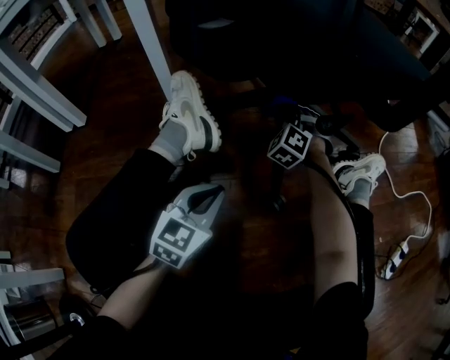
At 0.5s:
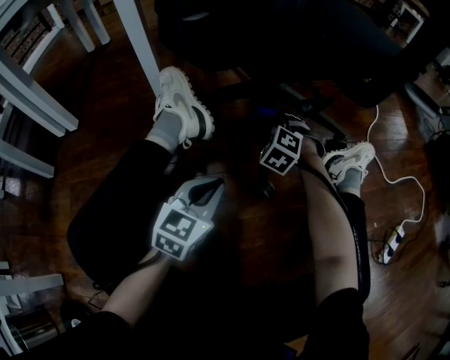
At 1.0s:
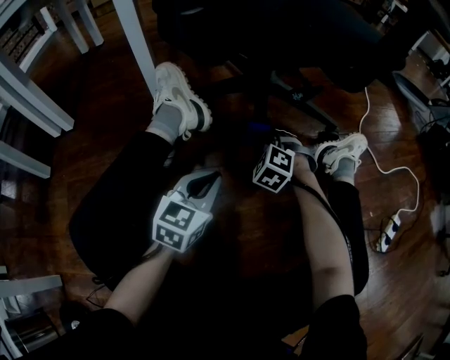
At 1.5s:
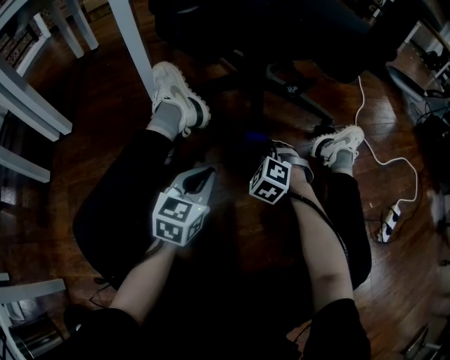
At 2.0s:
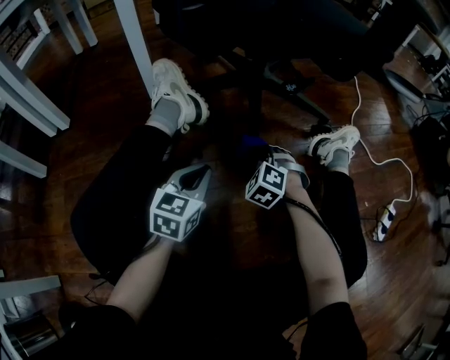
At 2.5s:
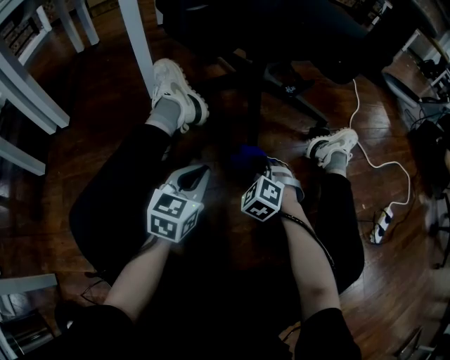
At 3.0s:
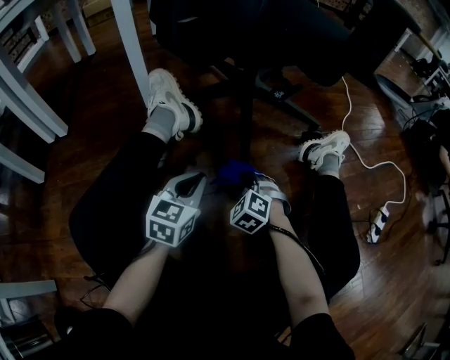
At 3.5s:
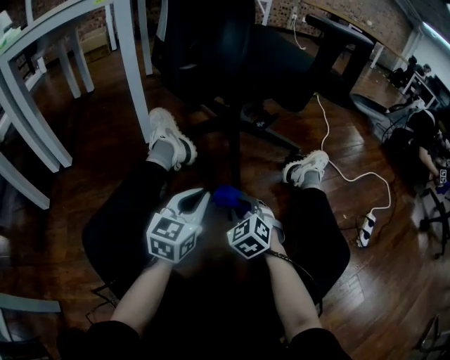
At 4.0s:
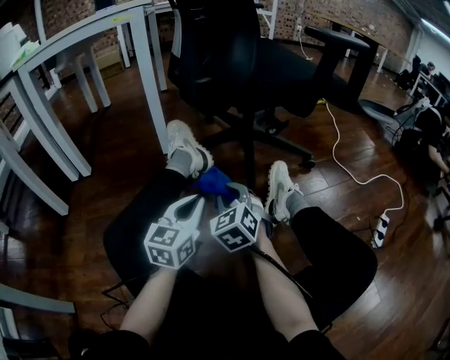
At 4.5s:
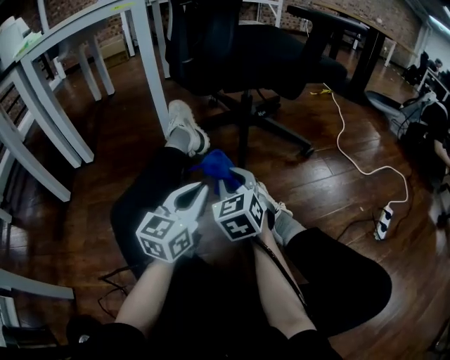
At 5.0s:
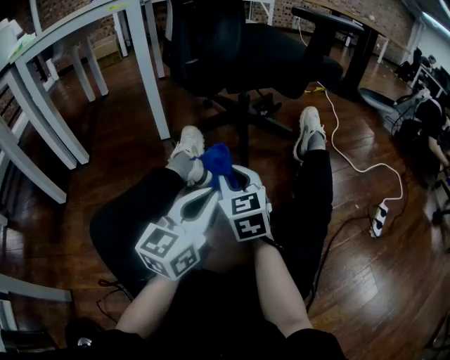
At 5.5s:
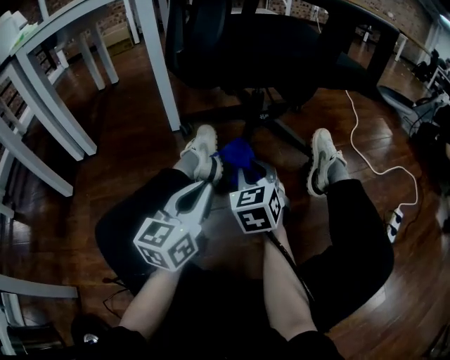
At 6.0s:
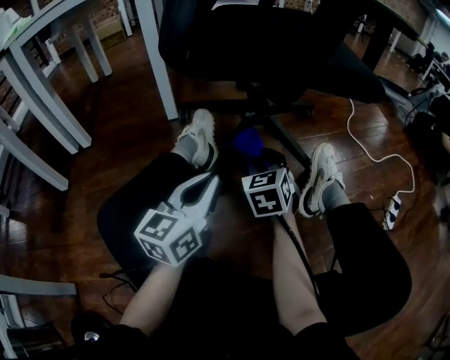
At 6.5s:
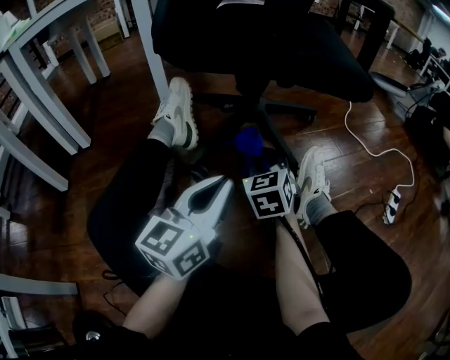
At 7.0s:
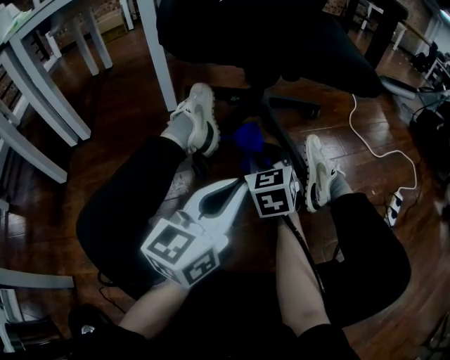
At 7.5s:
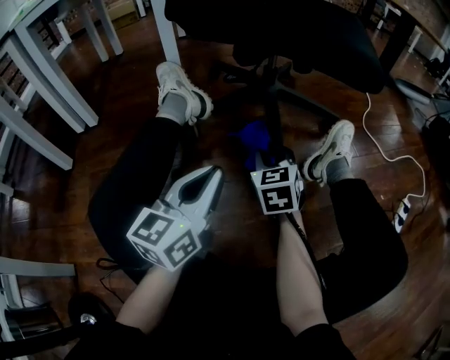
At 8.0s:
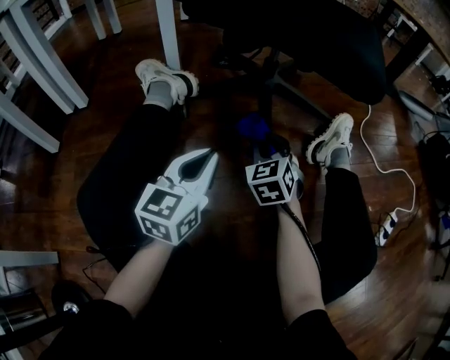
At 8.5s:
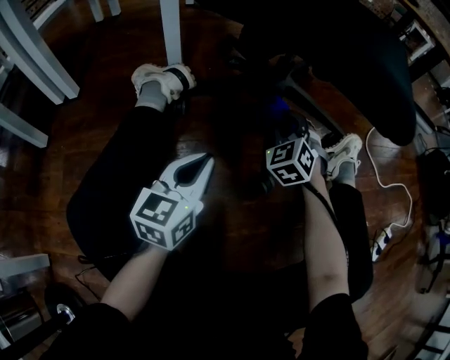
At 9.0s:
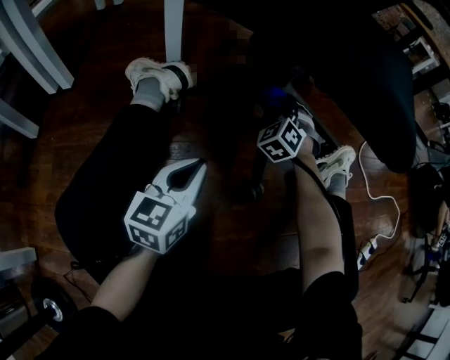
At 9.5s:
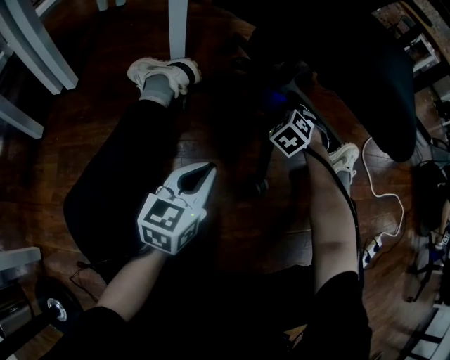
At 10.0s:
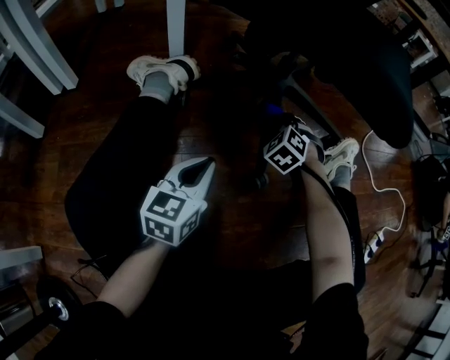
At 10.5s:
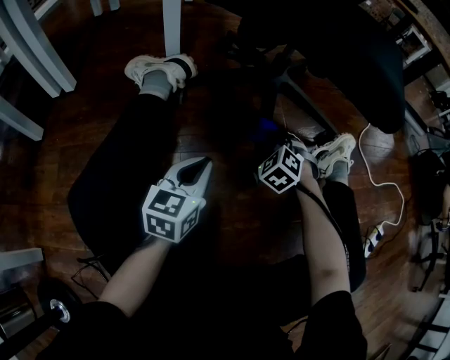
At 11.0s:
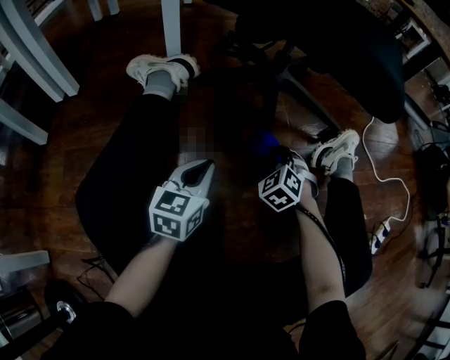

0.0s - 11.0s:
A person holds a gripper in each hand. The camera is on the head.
0.0s - 2.0s: The right gripper is displaced backward by roughly 20 cm.
2.0s - 3.5s: The left gripper shifts about 10 cm upward, while the right gripper heads backward and upward, covering roughly 10 cm, and turns by about 30 degrees.
3.5s - 5.5s: The left gripper is displaced to the left and upward by some 10 cm. The right gripper shifts approximately 10 cm upward and to the left, and changes its angle by approximately 20 degrees.
5.5s - 7.5s: The right gripper shifts by some 5 cm, while the left gripper reaches some 10 cm to the right, then returns.
7.5s - 9.0s: The left gripper goes some 15 cm forward and downward; the right gripper goes about 25 cm forward, and rotates around the line of its fingers by roughly 50 degrees, counterclockwise from behind.
9.0s - 11.0s: The right gripper is displaced backward and downward by about 20 cm, while the left gripper moves about 5 cm.

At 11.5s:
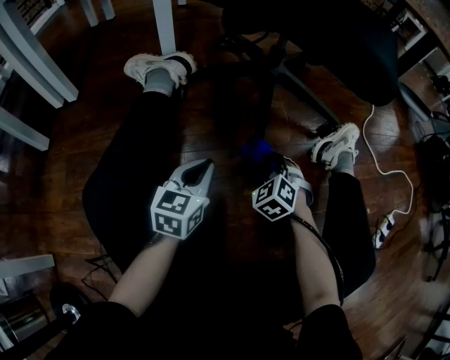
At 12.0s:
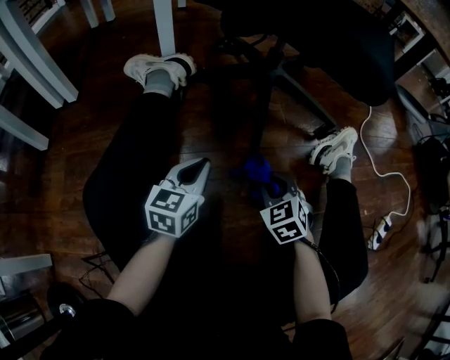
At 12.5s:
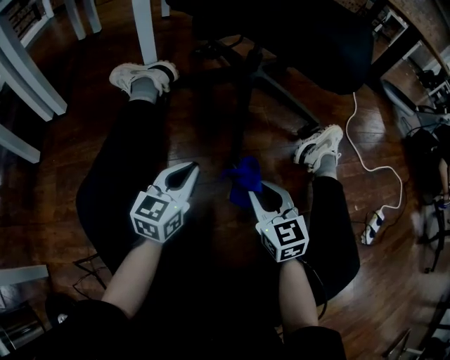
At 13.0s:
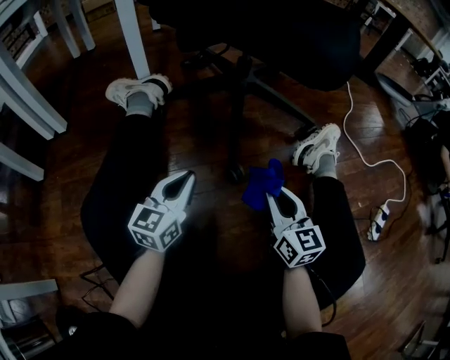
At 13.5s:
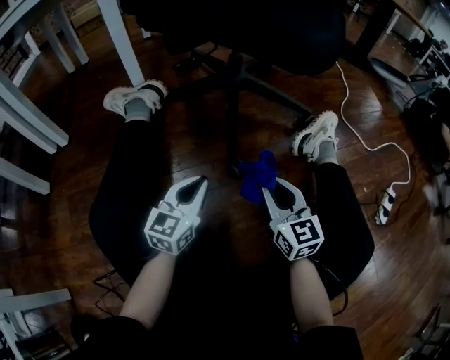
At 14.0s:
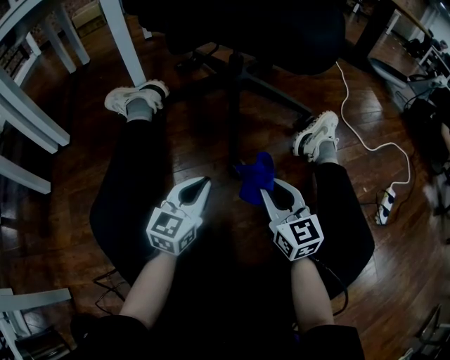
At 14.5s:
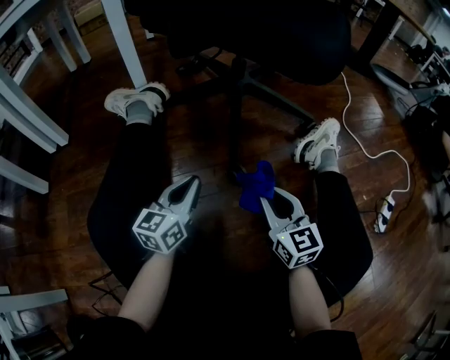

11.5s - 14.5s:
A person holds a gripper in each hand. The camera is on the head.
11.5s - 13.0s: The right gripper heads upward, backward and to the right, covering approximately 15 cm, and twists about 60 degrees clockwise, seen from behind.
13.0s - 14.5s: The grippers make only small movements.

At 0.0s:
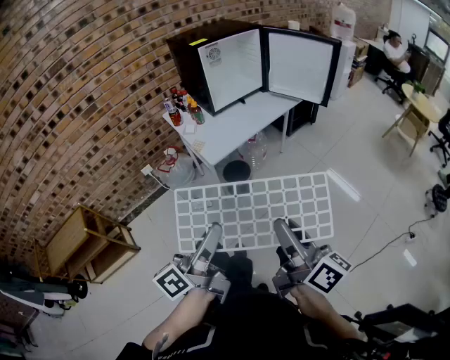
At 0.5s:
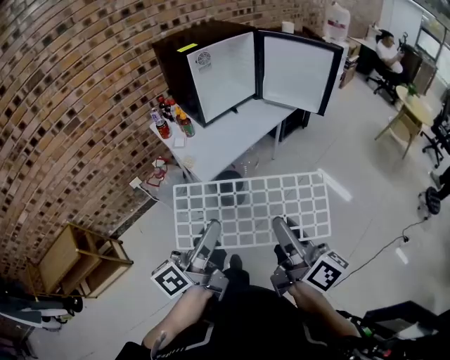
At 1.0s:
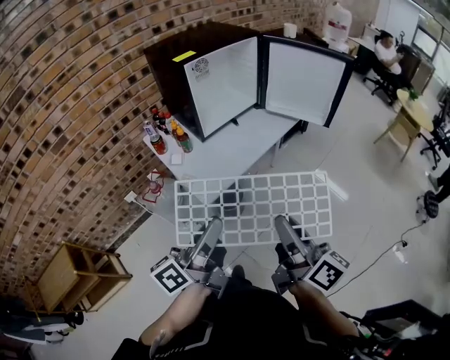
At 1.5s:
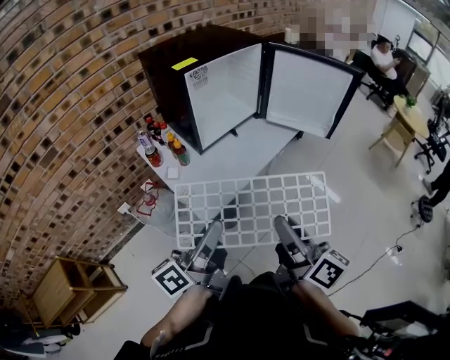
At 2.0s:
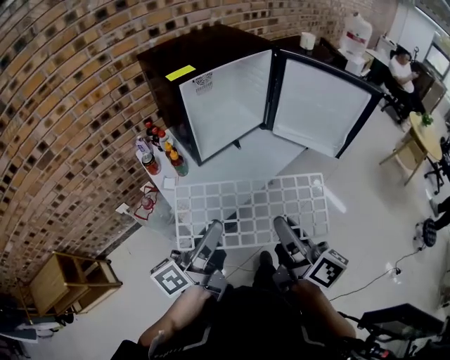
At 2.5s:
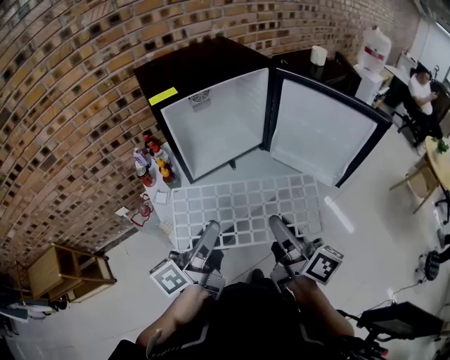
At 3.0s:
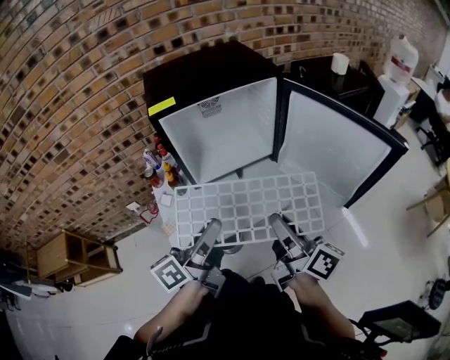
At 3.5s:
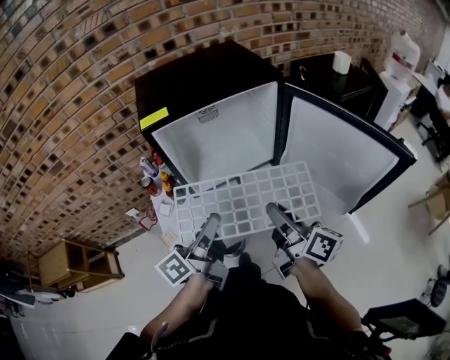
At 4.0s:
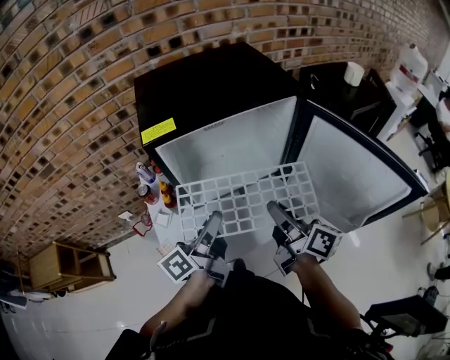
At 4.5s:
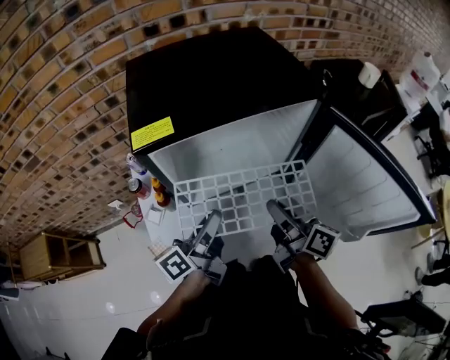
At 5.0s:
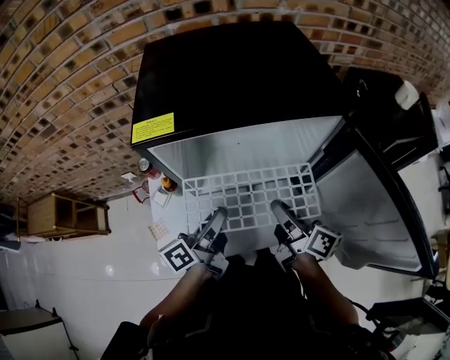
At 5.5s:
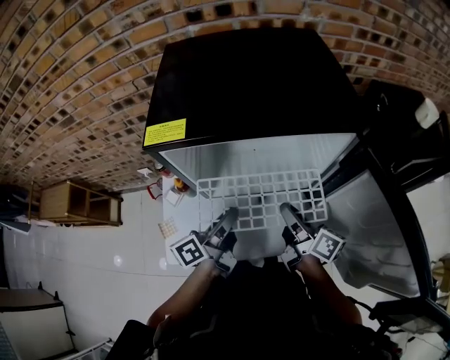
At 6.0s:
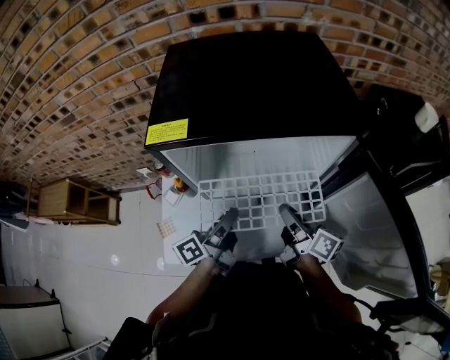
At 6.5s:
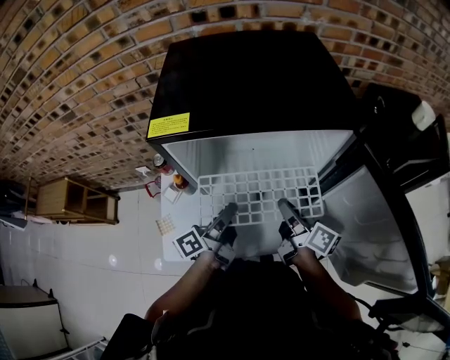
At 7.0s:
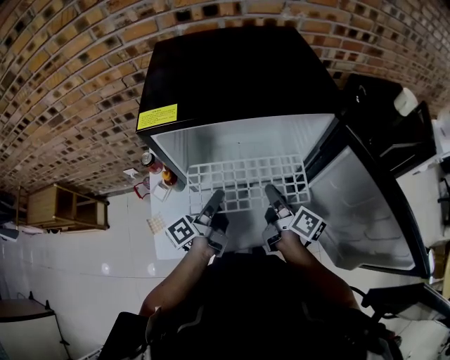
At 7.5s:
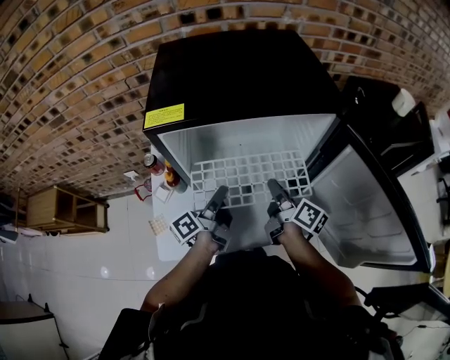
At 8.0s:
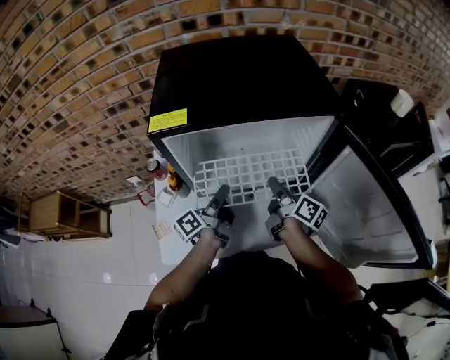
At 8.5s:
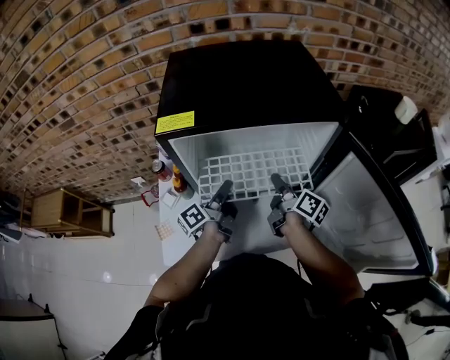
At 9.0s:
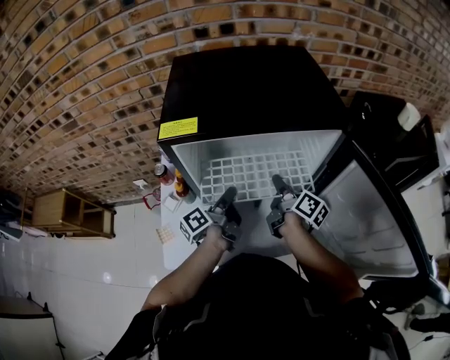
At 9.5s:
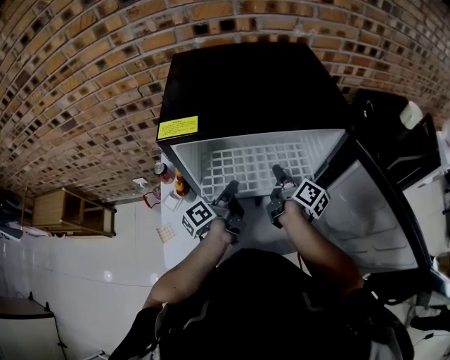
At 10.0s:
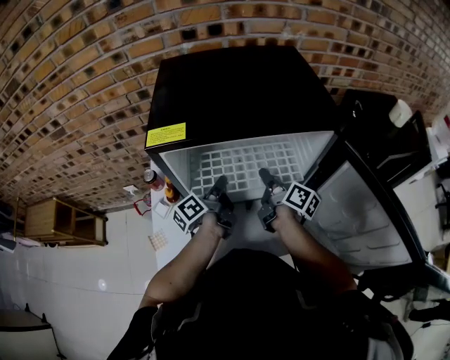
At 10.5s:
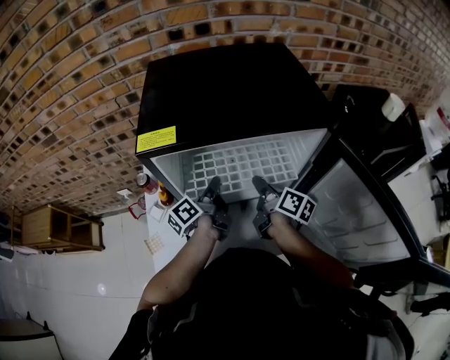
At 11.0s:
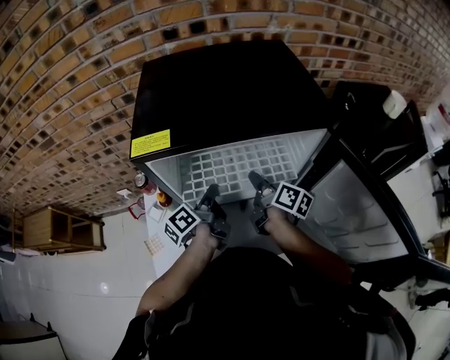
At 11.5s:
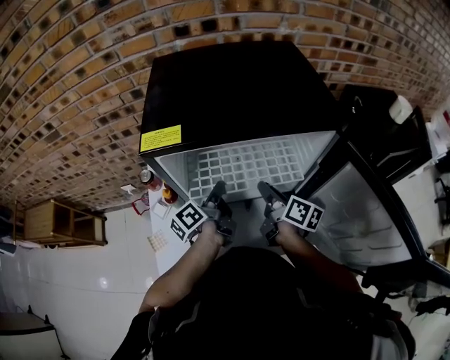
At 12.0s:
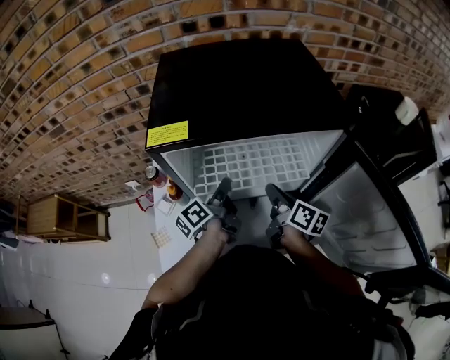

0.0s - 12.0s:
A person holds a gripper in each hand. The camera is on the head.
0.0s - 2.0s: The two grippers go approximately 40 cm forward.
2.0s - 4.0s: The two grippers go about 30 cm forward. The right gripper swivels about 20 degrees.
4.0s - 6.0s: The right gripper travels forward and downward by roughly 15 cm, while the left gripper moves downward and forward, some 10 cm.
6.0s - 8.0s: The grippers move only a little.
8.0s - 10.0s: The grippers both shift forward by roughly 5 cm.
10.0s - 12.0s: The right gripper moves backward, roughly 5 cm.

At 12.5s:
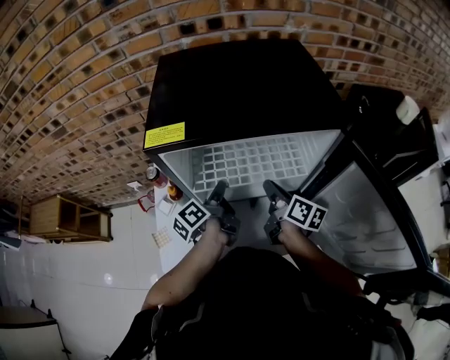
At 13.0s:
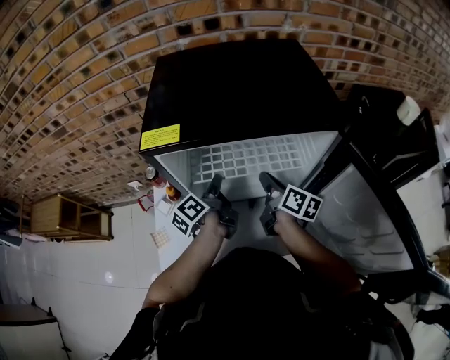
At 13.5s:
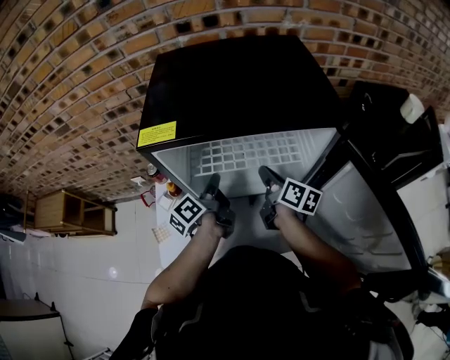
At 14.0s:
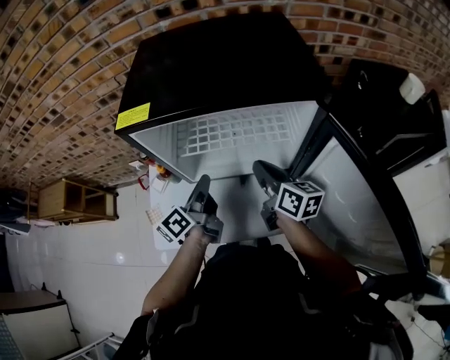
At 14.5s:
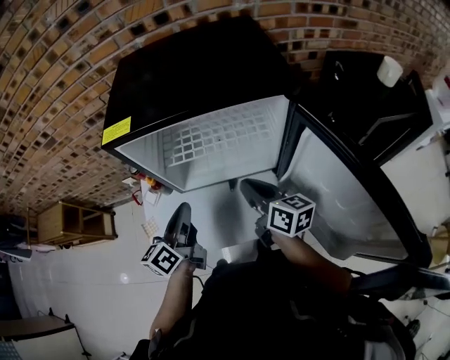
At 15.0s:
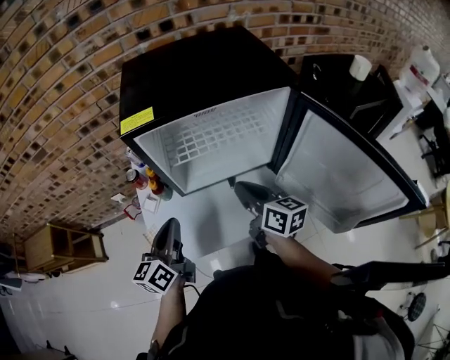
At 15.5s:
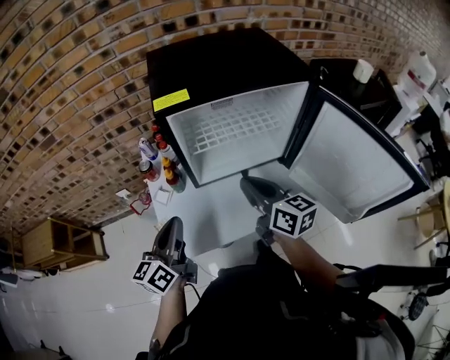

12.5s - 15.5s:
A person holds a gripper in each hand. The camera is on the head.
12.5s - 14.0s: The left gripper is displaced backward by some 5 cm.
14.0s - 15.5s: The left gripper is displaced to the left and backward by roughly 20 cm, and rotates roughly 30 degrees. The right gripper moves backward, to the left and upward, approximately 15 cm.
